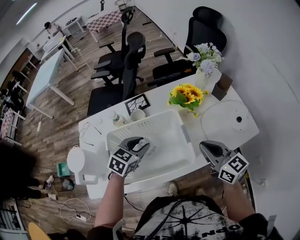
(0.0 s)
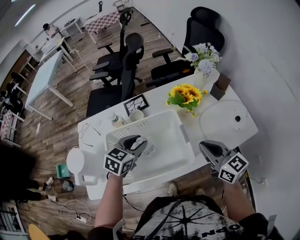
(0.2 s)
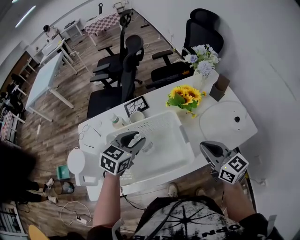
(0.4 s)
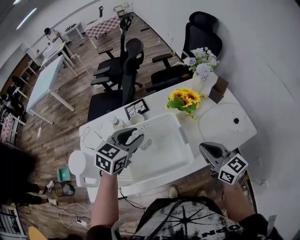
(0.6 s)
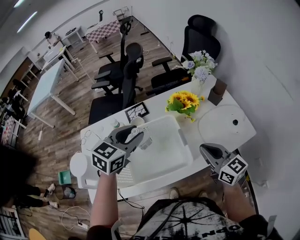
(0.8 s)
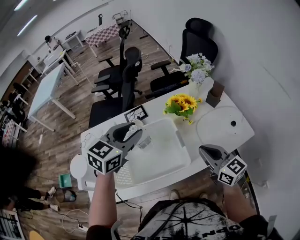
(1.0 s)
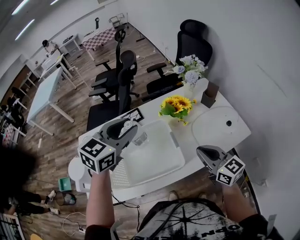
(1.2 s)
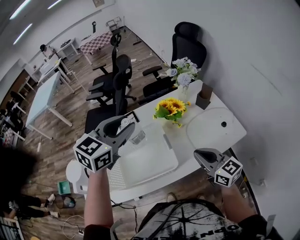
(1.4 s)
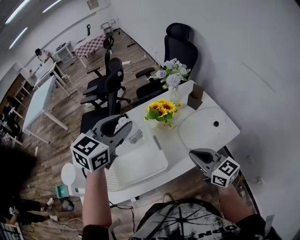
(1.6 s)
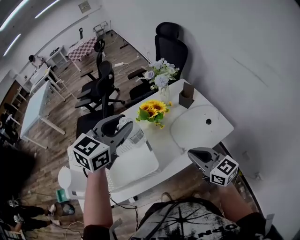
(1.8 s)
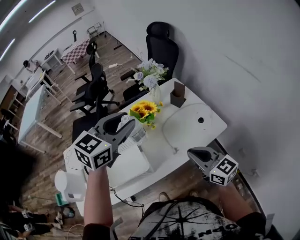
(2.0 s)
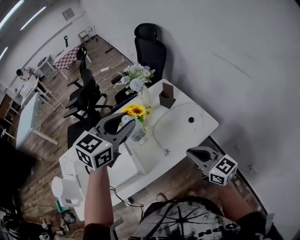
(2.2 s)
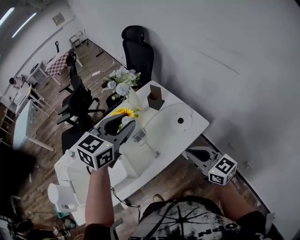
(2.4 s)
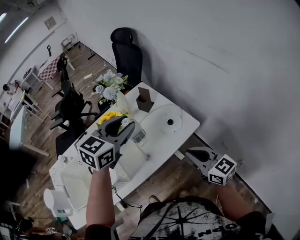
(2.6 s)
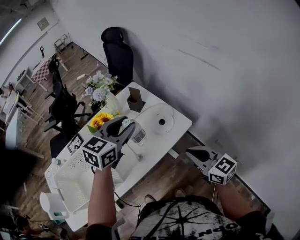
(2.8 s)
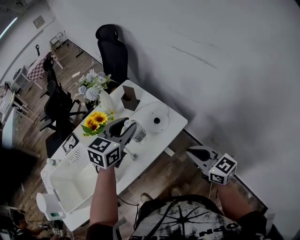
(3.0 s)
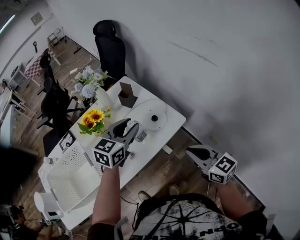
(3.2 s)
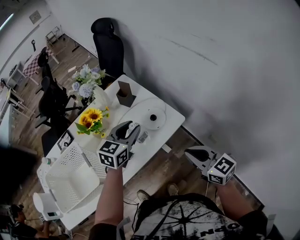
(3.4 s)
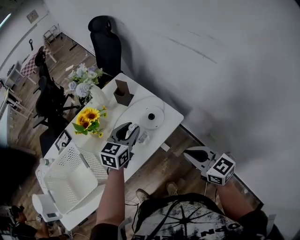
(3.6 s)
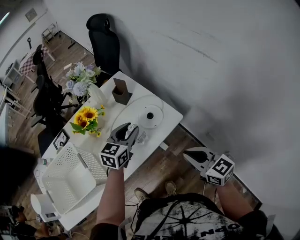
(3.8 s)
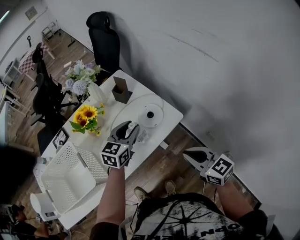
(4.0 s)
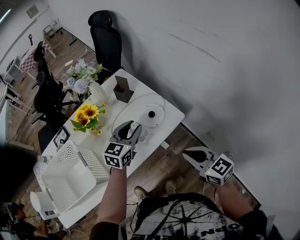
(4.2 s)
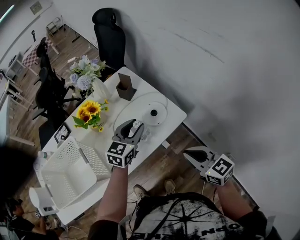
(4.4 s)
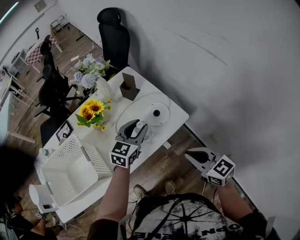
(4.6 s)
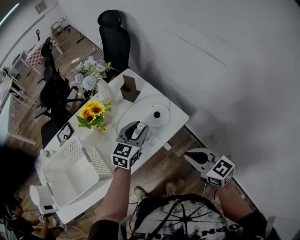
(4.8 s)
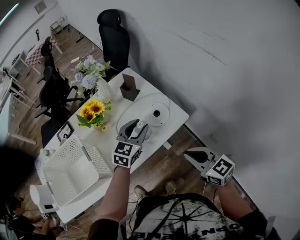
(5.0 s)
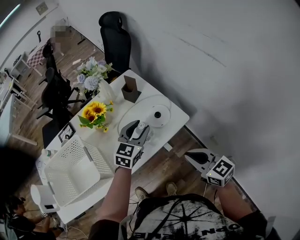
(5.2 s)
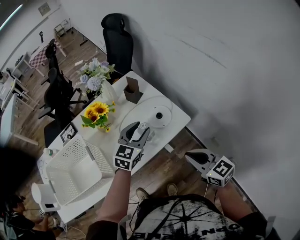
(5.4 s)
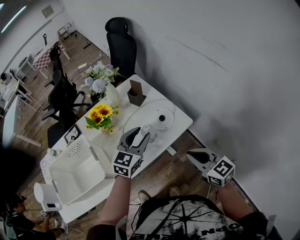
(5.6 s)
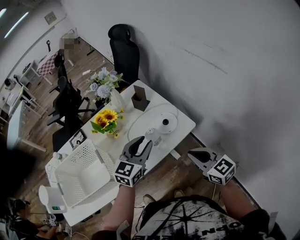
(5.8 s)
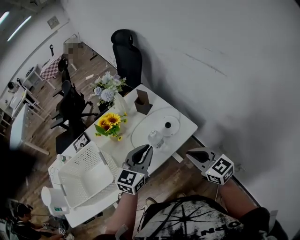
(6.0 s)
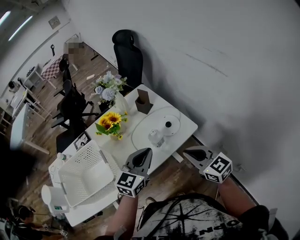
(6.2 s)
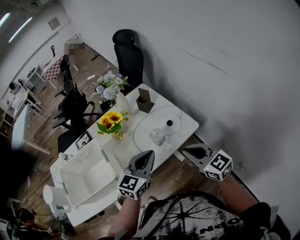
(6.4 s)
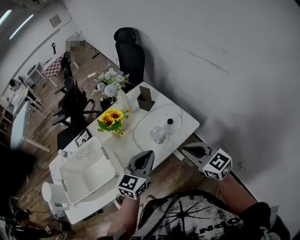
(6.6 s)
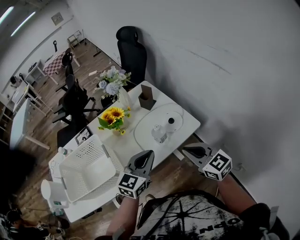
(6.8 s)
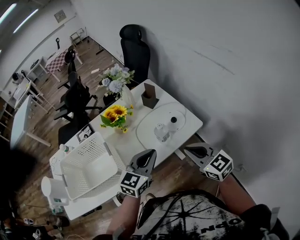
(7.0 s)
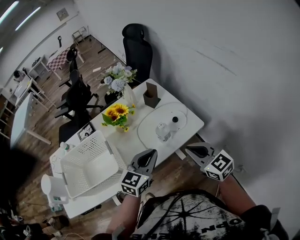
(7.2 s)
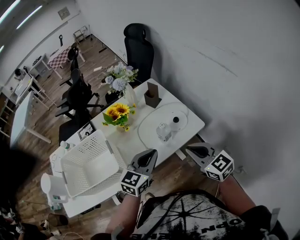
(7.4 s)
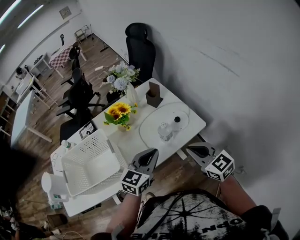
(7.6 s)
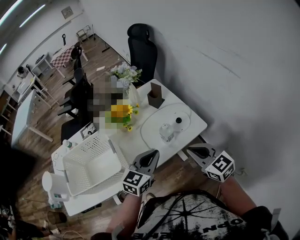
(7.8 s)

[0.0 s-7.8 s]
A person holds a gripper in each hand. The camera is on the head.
0.0 to 1.6 s: The left gripper shifts roughly 25 cm upward and to the right, and swivels some 20 degrees, while the right gripper is displaced to the right by approximately 5 cm.
1.6 to 3.2 s: The right gripper travels to the right by about 30 cm; the left gripper is displaced to the right and downward by roughly 35 cm.
3.2 to 4.6 s: The left gripper shifts approximately 10 cm downward.
4.6 to 6.2 s: The right gripper moves some 5 cm. The left gripper moves backward and upward, some 15 cm, and closes.
6.2 to 7.8 s: The grippers stay close to where they were, moving slightly.

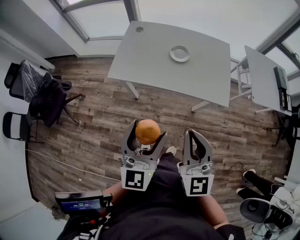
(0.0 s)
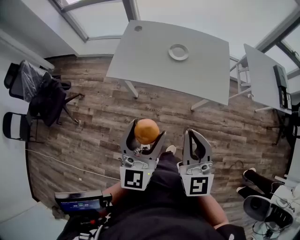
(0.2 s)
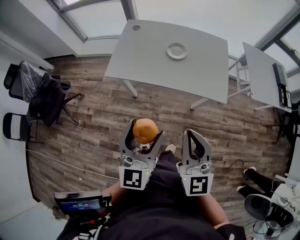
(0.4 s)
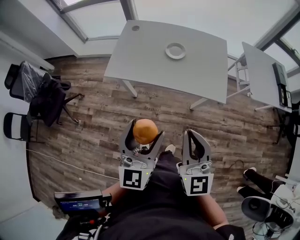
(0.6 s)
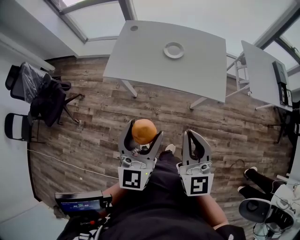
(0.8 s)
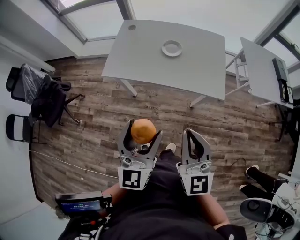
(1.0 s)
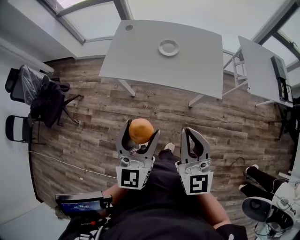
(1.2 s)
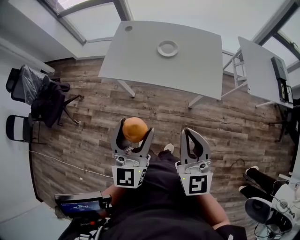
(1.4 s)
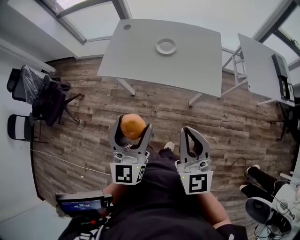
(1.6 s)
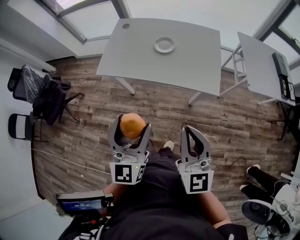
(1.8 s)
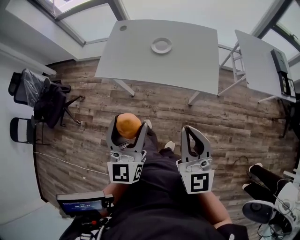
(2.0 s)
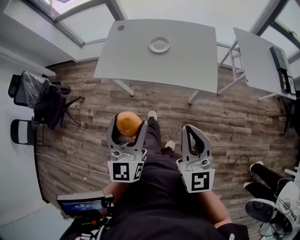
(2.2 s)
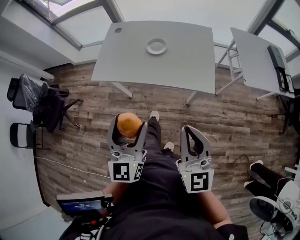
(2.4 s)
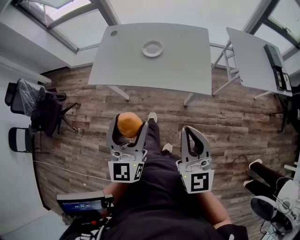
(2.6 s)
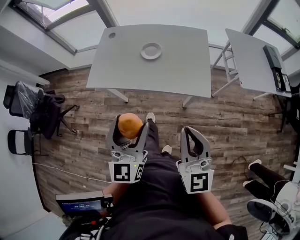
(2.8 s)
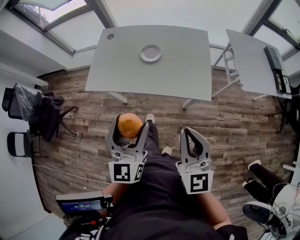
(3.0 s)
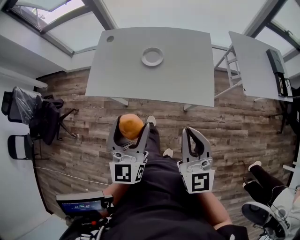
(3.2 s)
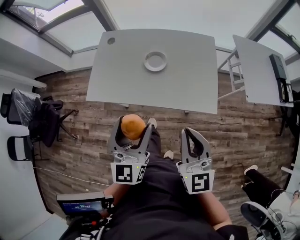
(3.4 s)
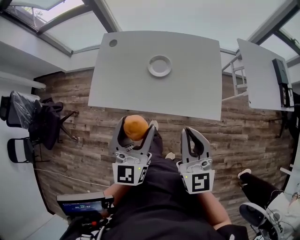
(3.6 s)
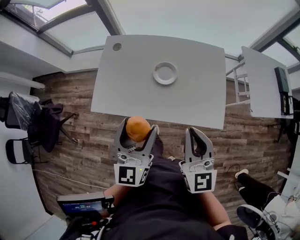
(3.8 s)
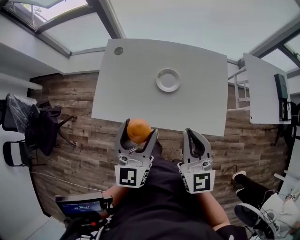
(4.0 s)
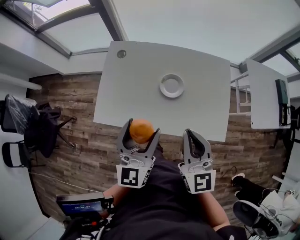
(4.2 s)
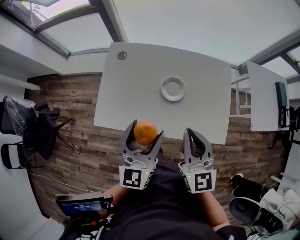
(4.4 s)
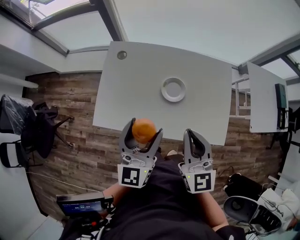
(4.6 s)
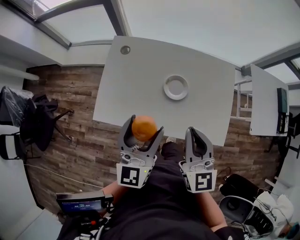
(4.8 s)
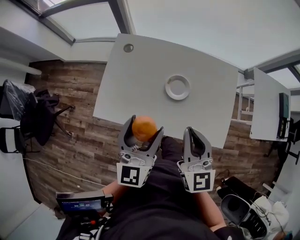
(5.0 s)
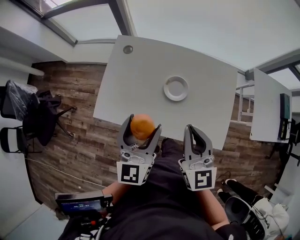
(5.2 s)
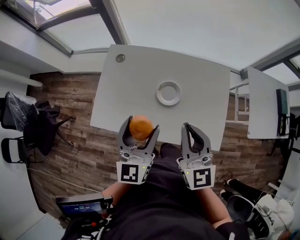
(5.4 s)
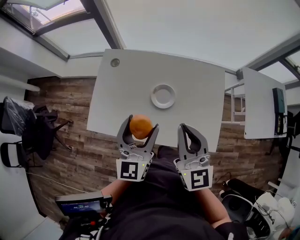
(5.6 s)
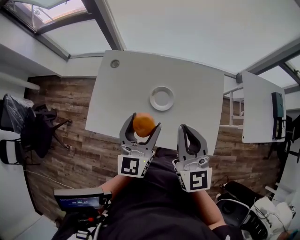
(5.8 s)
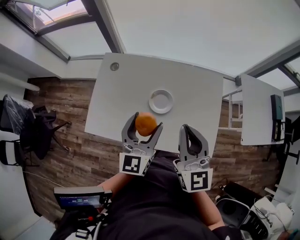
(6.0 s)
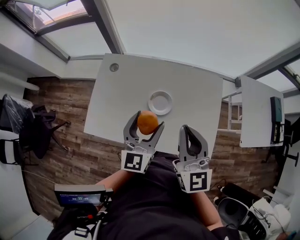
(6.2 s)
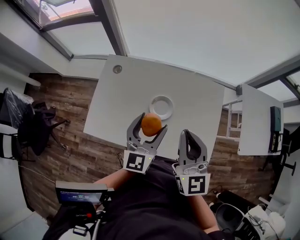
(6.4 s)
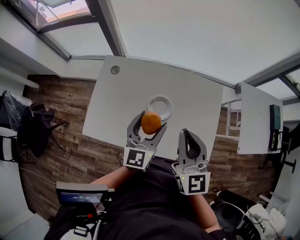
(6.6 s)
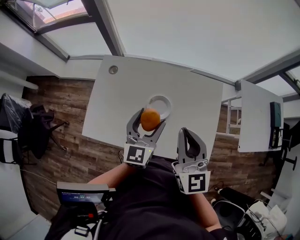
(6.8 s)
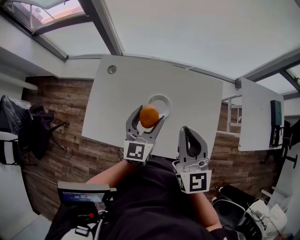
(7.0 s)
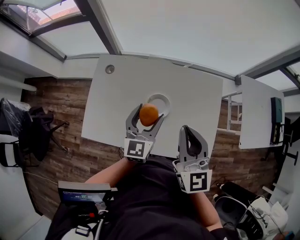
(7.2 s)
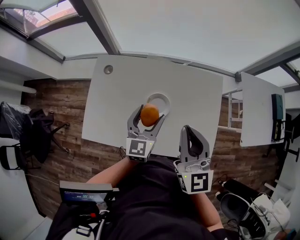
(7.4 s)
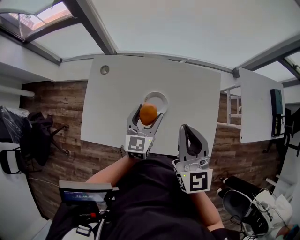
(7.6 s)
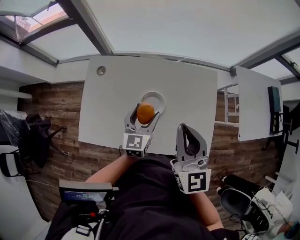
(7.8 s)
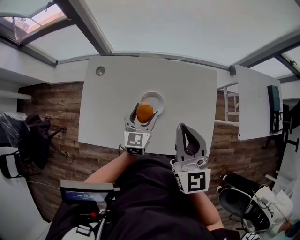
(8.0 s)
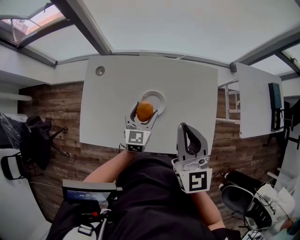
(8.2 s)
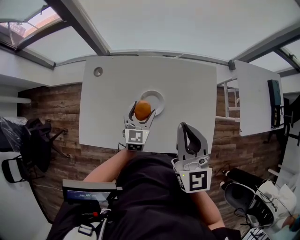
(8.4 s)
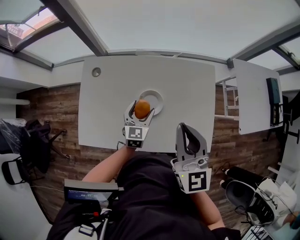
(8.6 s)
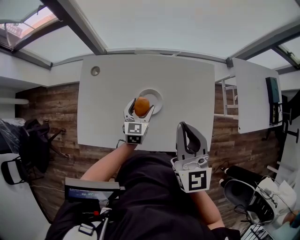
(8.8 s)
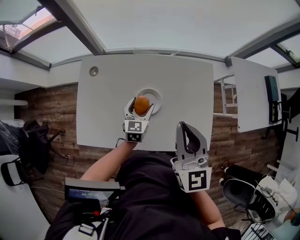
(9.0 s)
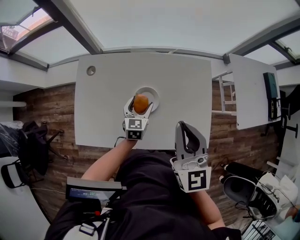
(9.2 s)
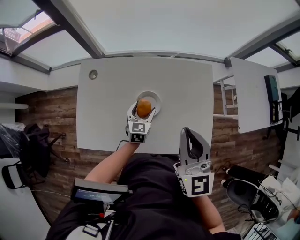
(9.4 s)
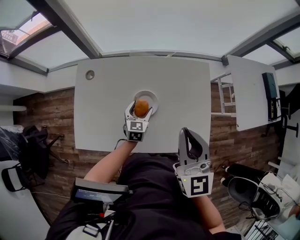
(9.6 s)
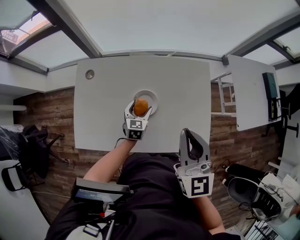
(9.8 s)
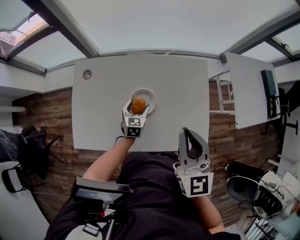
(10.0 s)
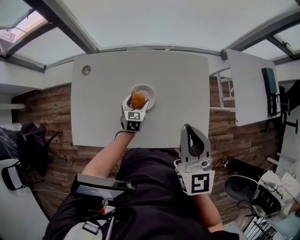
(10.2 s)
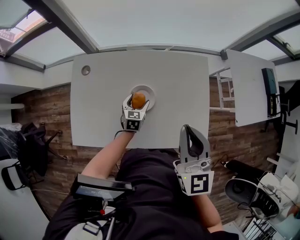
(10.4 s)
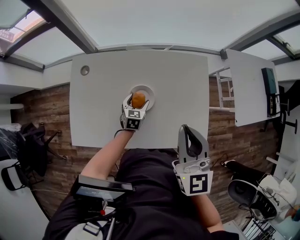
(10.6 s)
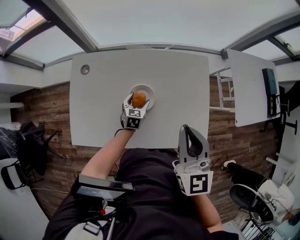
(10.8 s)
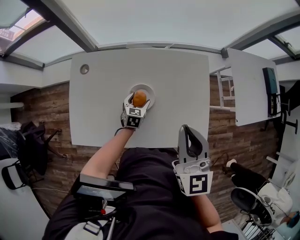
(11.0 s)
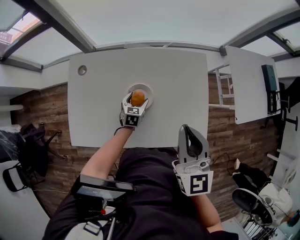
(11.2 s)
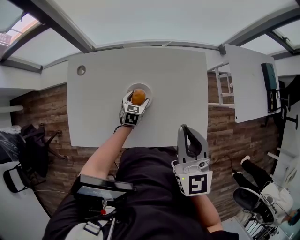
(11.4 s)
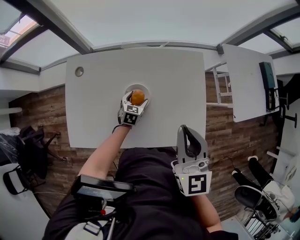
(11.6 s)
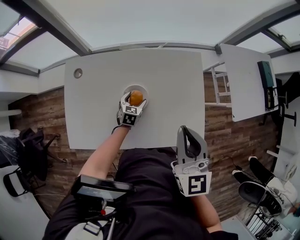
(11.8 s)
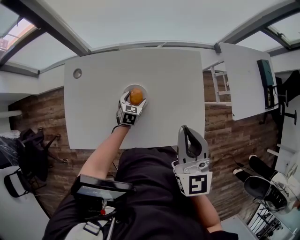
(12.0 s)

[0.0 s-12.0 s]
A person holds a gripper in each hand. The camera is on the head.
0.0 to 1.6 s: The left gripper travels to the right by approximately 5 cm; the right gripper goes roughly 10 cm to the right.
1.6 to 3.0 s: The right gripper is displaced to the right and forward by roughly 10 cm; the left gripper goes roughly 10 cm forward and to the right.
3.0 to 4.4 s: The right gripper travels forward and to the left by some 30 cm, while the left gripper shifts roughly 25 cm forward.
4.4 to 6.0 s: Both grippers move to the right and forward, some 10 cm.
6.0 to 7.6 s: The left gripper goes approximately 15 cm downward and forward. The right gripper changes place by some 5 cm.
7.6 to 9.0 s: The left gripper travels downward by roughly 10 cm.
9.0 to 10.4 s: The left gripper is displaced downward by some 10 cm.
10.4 to 12.0 s: The grippers stay close to where they were, moving slightly.

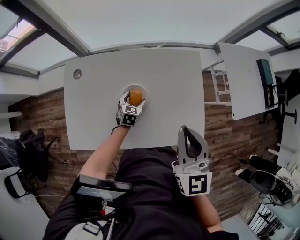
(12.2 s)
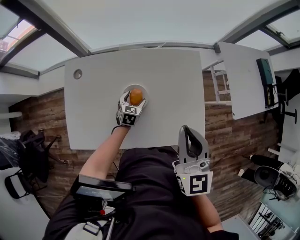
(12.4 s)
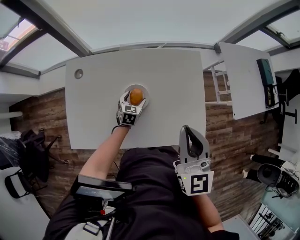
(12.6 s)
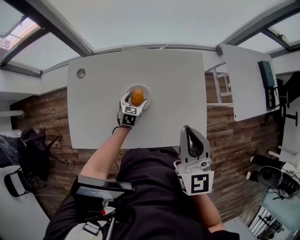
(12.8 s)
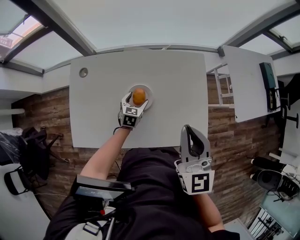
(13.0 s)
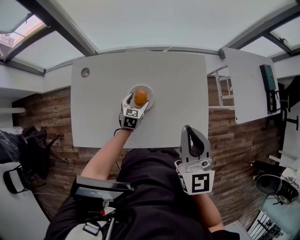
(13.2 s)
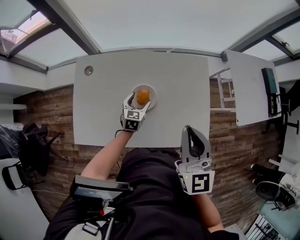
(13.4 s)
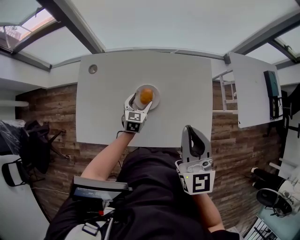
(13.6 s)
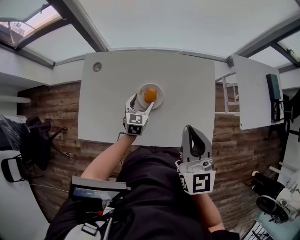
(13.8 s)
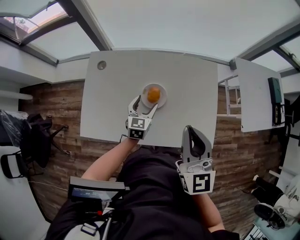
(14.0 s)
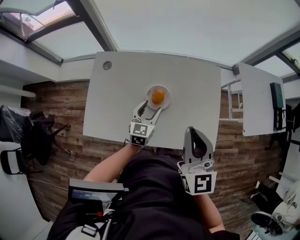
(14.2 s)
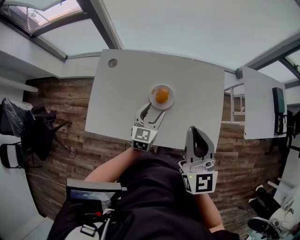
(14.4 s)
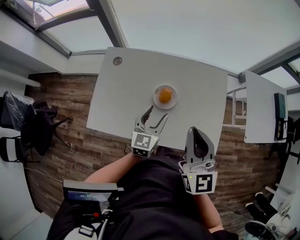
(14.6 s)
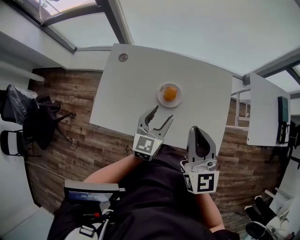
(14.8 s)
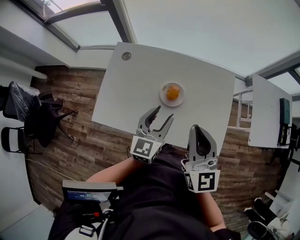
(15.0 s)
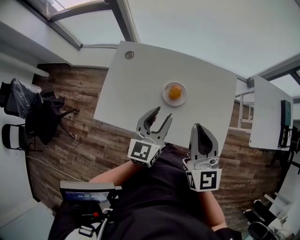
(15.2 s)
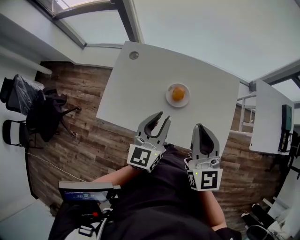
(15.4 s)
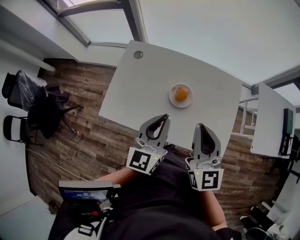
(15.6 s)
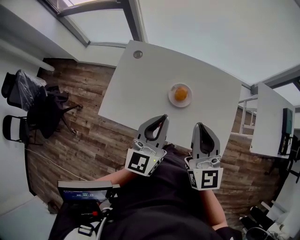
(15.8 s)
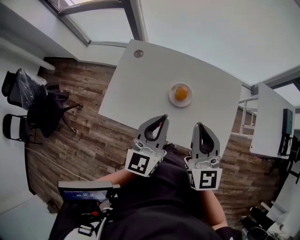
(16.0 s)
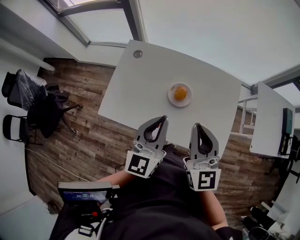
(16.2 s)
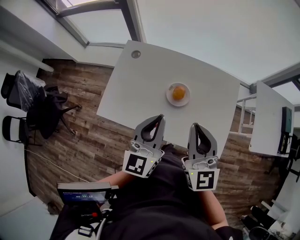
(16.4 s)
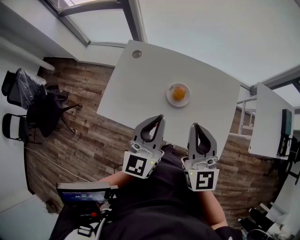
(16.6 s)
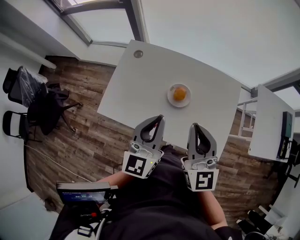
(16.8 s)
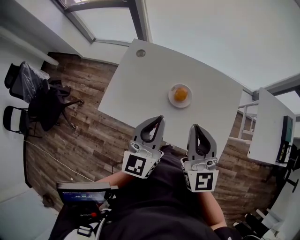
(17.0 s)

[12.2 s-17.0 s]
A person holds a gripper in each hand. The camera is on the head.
12.2 to 13.8 s: The left gripper goes about 10 cm upward.
13.8 to 15.4 s: The right gripper travels to the left by roughly 5 cm; the left gripper heads upward and backward, covering about 25 cm, changes its angle by some 30 degrees, and closes its fingers.
15.4 to 17.0 s: The left gripper shifts by some 5 cm.
